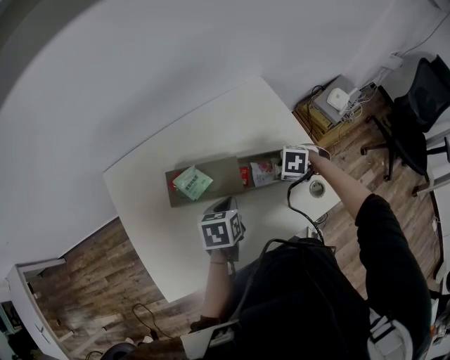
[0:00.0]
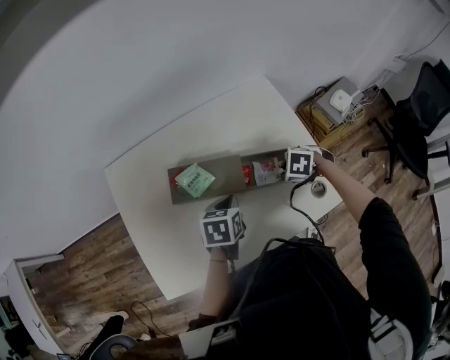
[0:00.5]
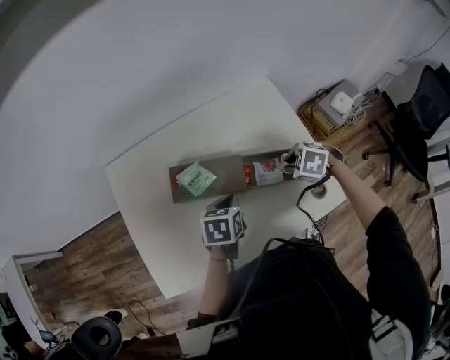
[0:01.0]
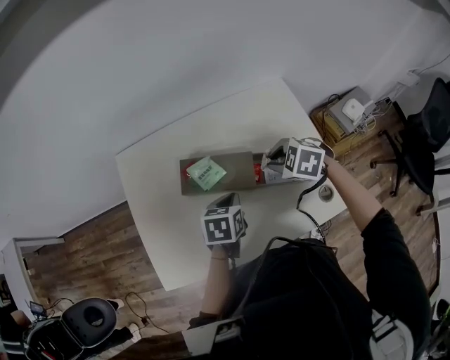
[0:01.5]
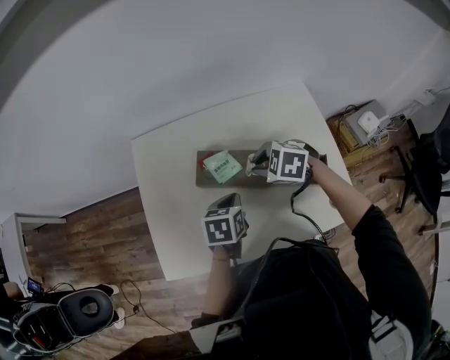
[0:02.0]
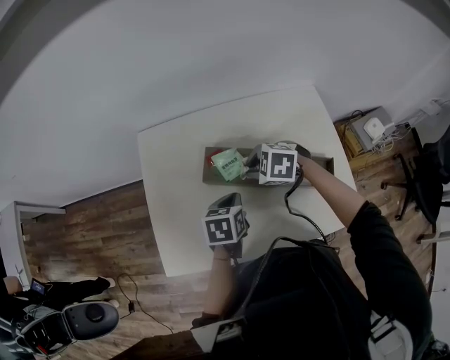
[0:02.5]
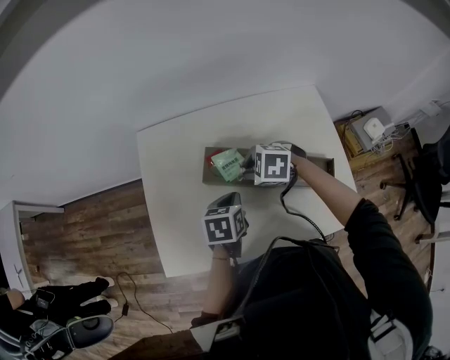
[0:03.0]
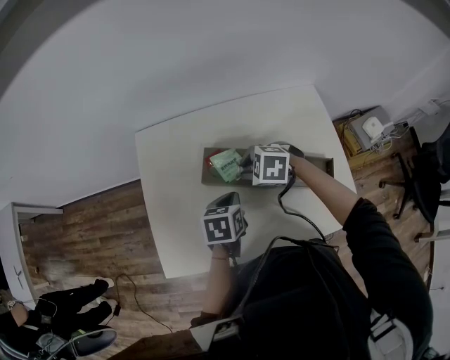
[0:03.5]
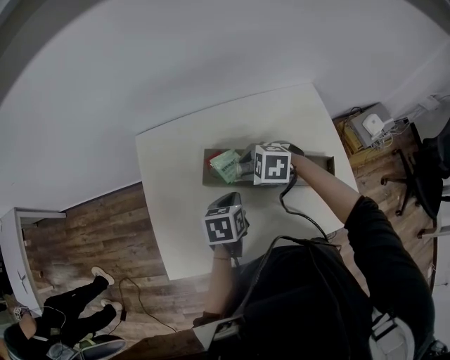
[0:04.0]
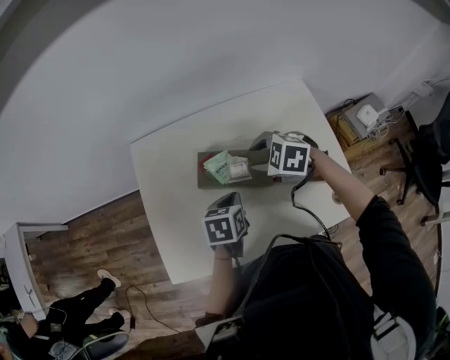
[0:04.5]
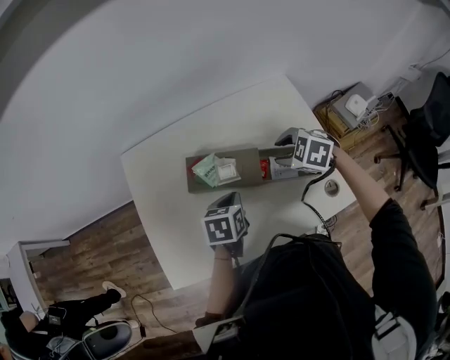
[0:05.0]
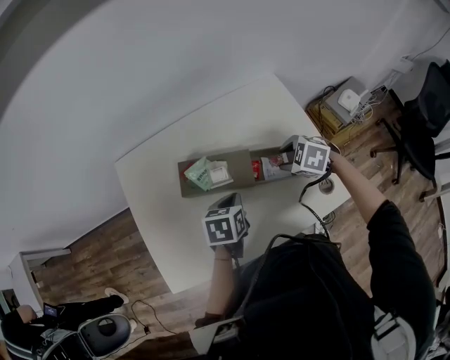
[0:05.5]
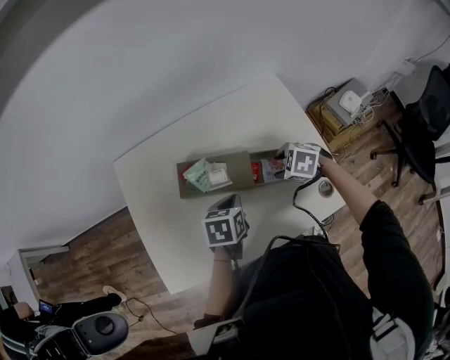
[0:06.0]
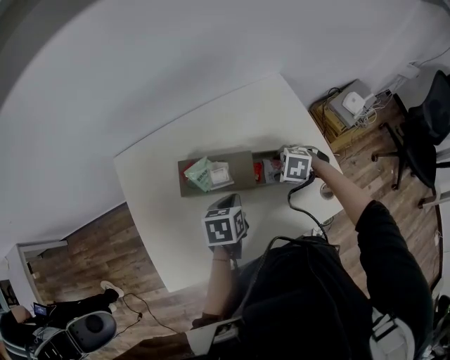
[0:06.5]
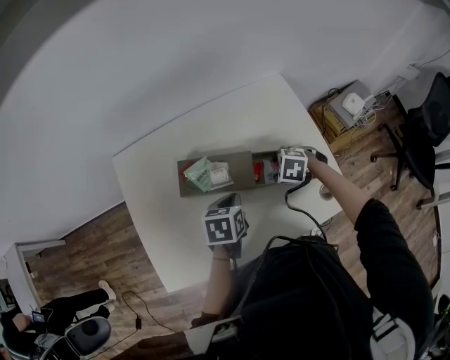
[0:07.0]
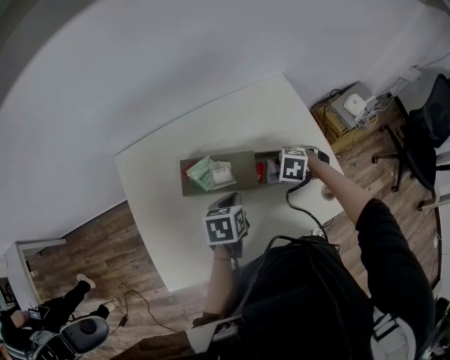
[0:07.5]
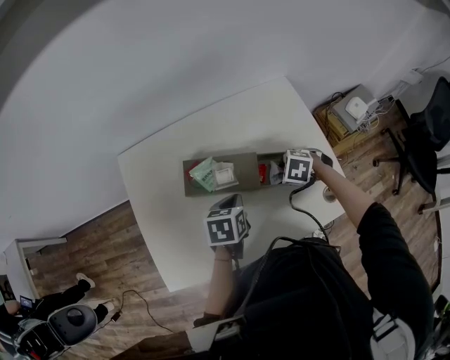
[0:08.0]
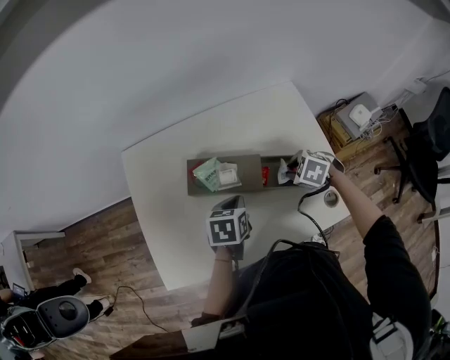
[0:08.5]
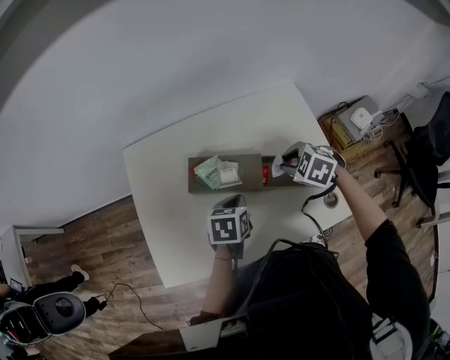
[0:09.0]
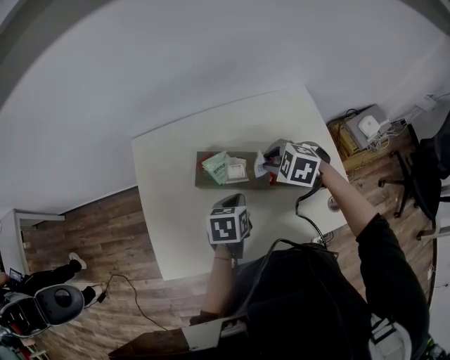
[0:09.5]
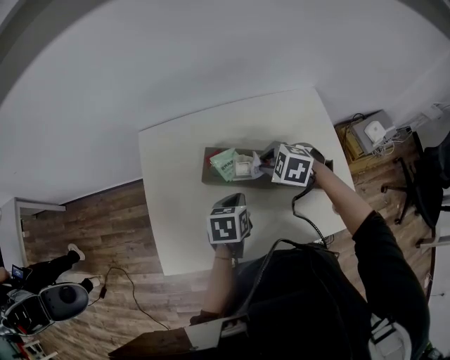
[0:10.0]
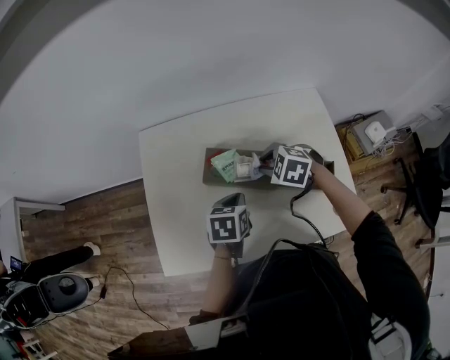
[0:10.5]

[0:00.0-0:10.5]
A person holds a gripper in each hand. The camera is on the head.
0:00.0 to 0:02.0: The right gripper shifts by some 20 cm, rotates approximately 30 degrees, and closes; the left gripper ends up roughly 10 cm from where it was.
0:02.0 to 0:04.0: The right gripper moves to the left, roughly 5 cm, and opens its fingers.
0:04.0 to 0:06.5: The right gripper moves some 20 cm, and turns by approximately 20 degrees; the left gripper changes place by about 5 cm.
0:06.5 to 0:08.5: The right gripper closes up.
0:08.5 to 0:10.5: The right gripper is displaced to the left and forward by approximately 15 cm, and changes its angle by roughly 20 degrees.

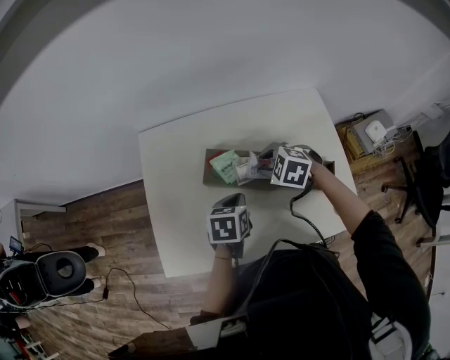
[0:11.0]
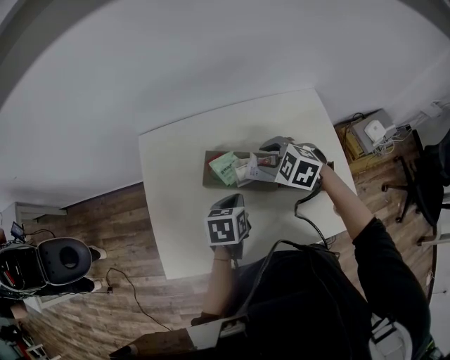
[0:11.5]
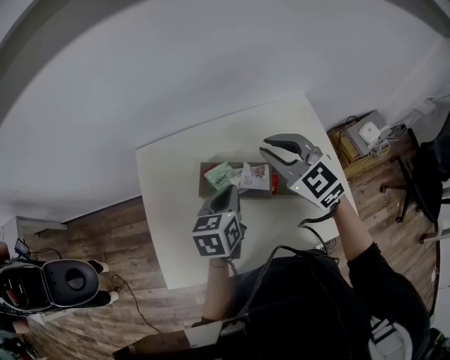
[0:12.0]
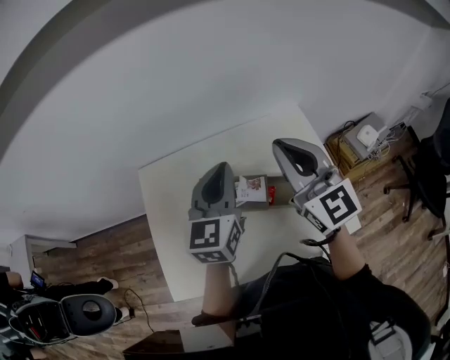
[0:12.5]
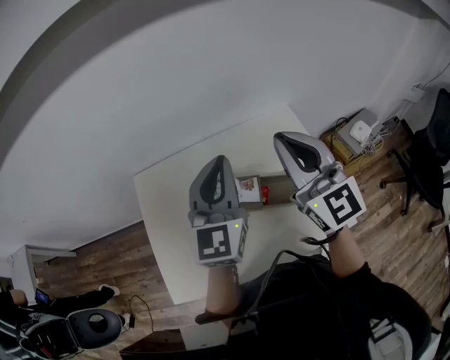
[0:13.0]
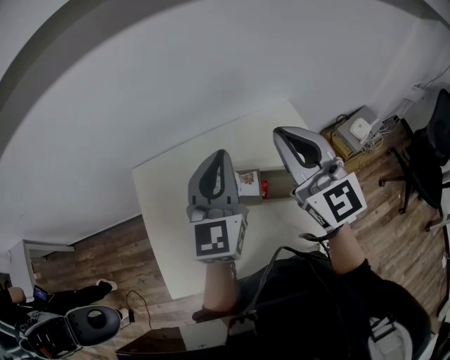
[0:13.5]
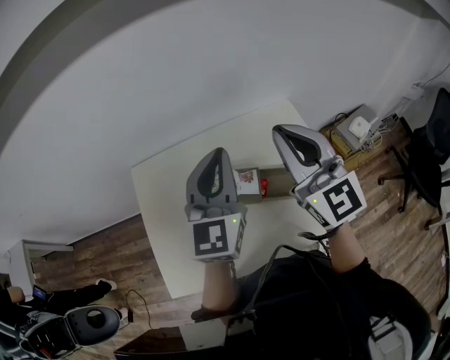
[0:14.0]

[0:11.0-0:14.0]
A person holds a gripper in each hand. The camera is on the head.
0:11.0 to 0:12.5: The two grippers go some 25 cm upward. The right gripper points its fingers roughly 70 degrees further upward, and closes, while the left gripper tips its fingers upward by about 50 degrees.
0:12.5 to 0:14.0: The left gripper travels upward by some 5 cm.

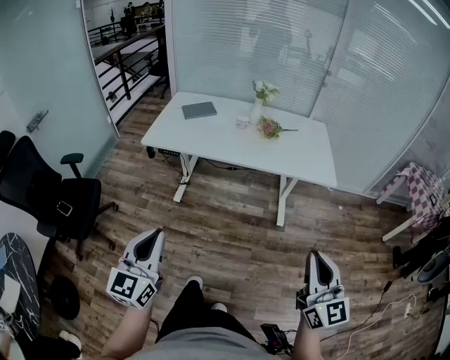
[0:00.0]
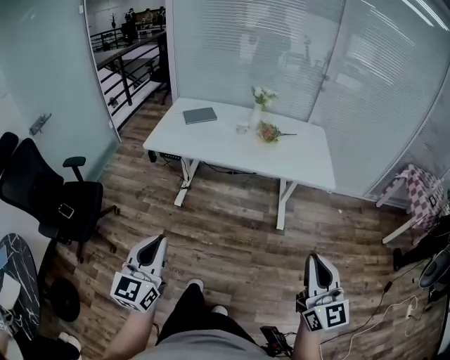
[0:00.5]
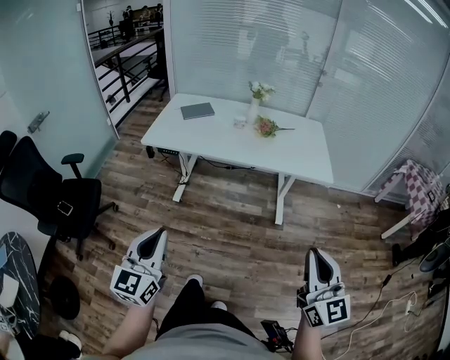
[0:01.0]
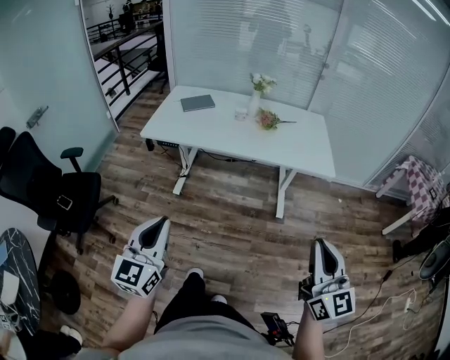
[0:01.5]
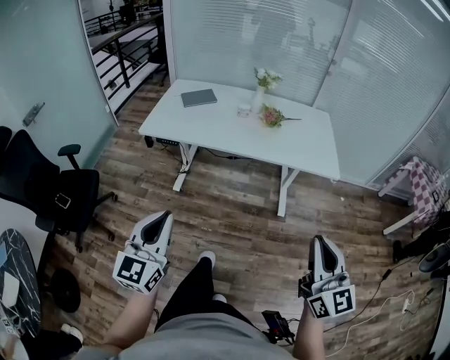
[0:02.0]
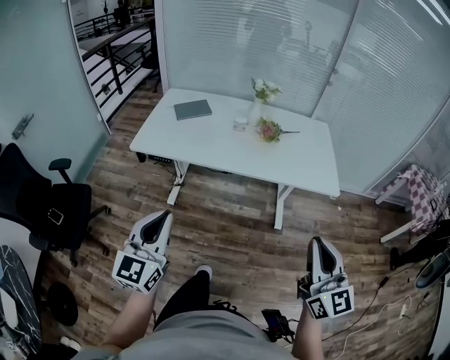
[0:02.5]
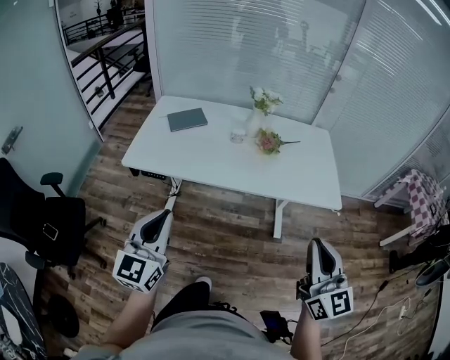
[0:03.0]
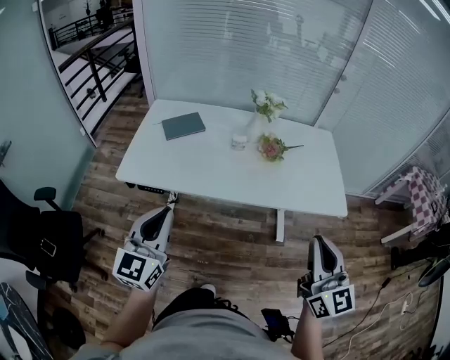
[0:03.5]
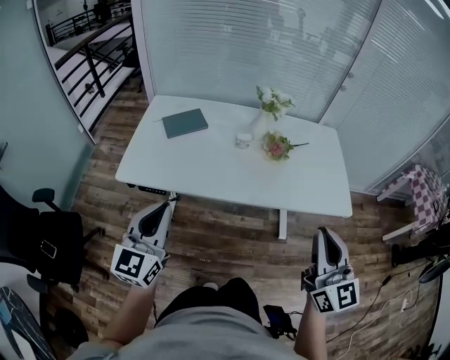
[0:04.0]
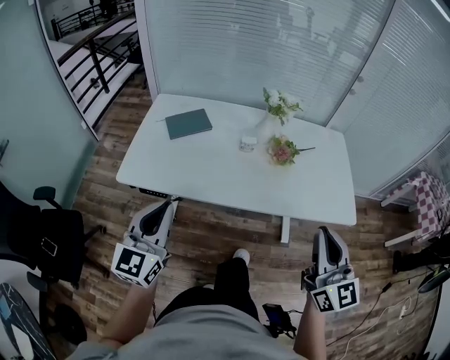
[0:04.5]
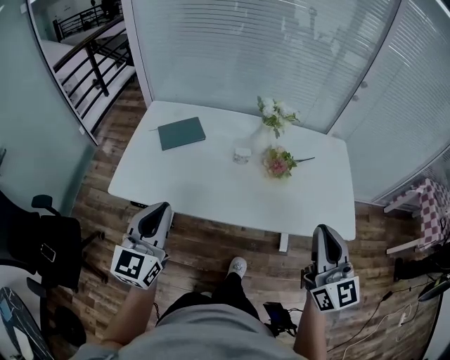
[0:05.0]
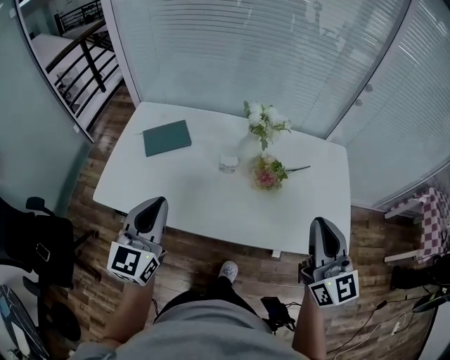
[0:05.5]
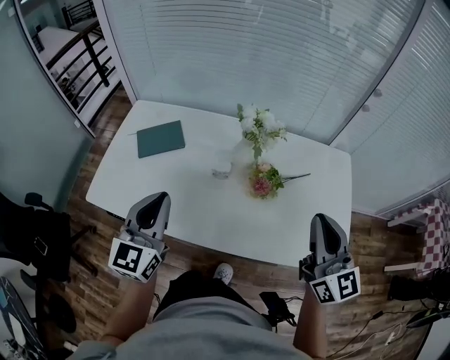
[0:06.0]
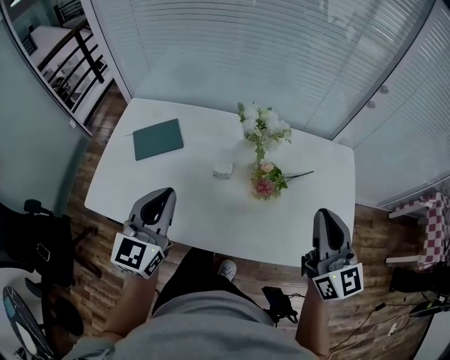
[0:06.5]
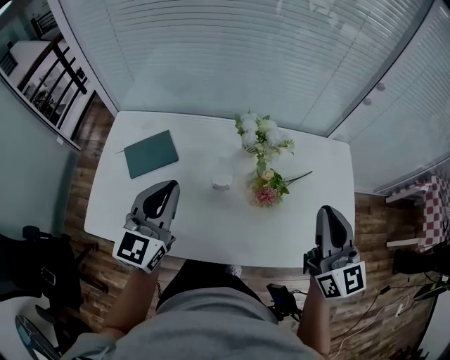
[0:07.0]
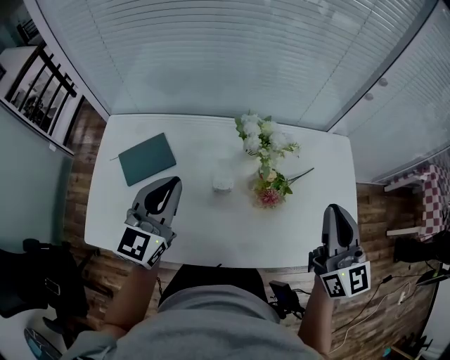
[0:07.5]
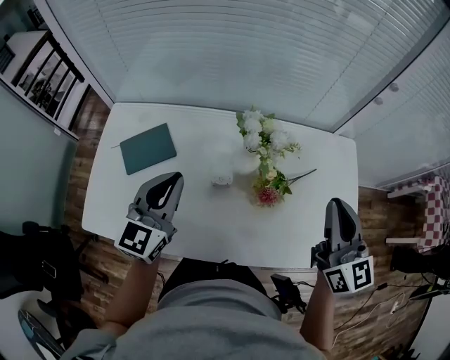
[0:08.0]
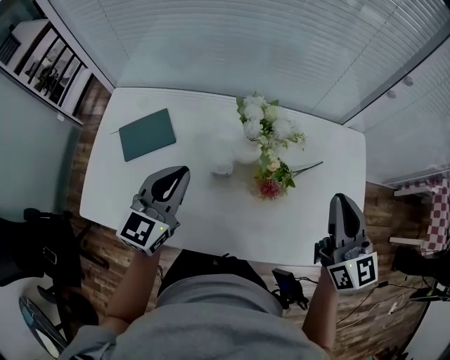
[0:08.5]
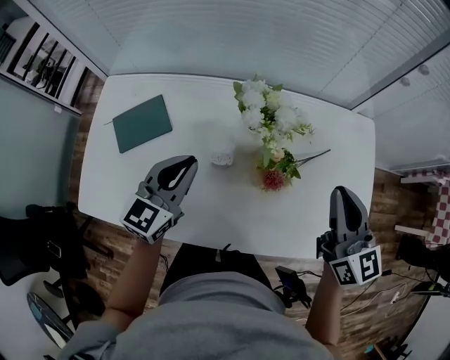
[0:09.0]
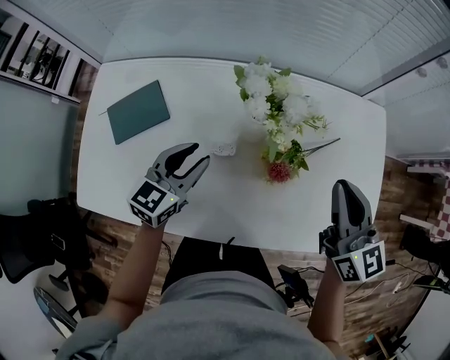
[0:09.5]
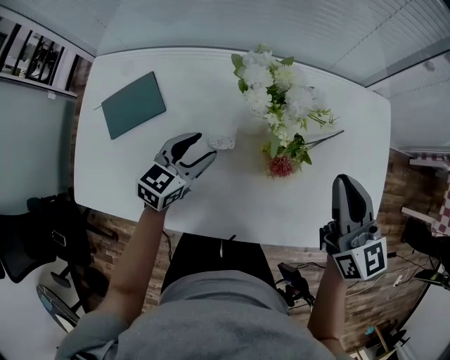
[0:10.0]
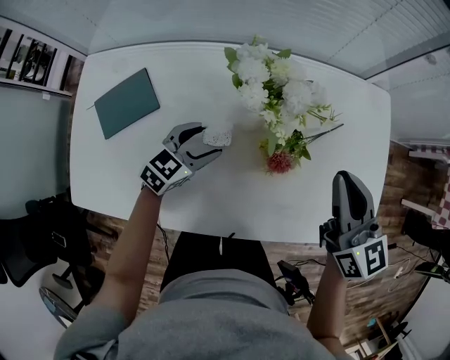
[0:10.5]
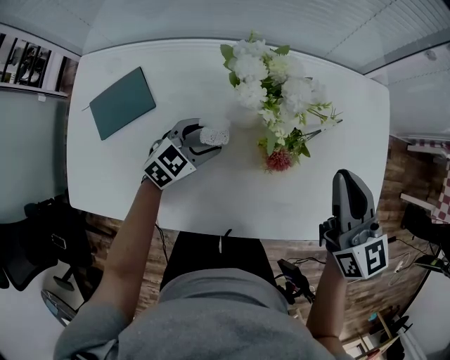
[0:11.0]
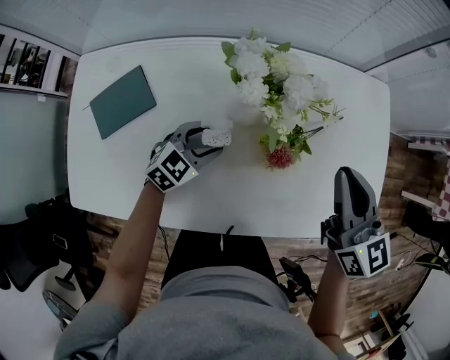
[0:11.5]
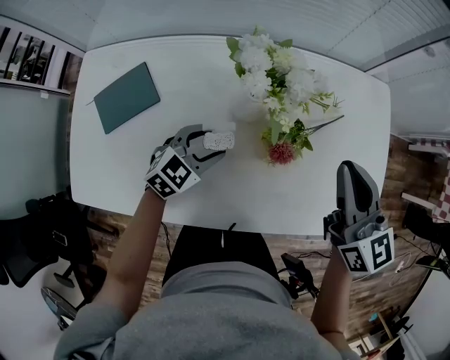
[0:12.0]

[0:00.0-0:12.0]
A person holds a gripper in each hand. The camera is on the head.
0:00.0 to 0:02.0: The grippers stay close to where they were, moving slightly.
0:02.0 to 0:04.0: The two grippers go roughly 30 cm forward.
0:04.0 to 0:06.0: Both grippers travel together forward and to the right, roughly 30 cm.
0:06.0 to 0:08.0: The grippers both shift forward by approximately 15 cm.
0:08.0 to 0:10.0: The right gripper travels downward by some 10 cm. Meanwhile the left gripper heads downward, covering about 20 cm, turns by roughly 30 degrees, and opens.
0:10.0 to 0:12.0: The left gripper ends up about 5 cm from where it was, and rotates about 30 degrees.

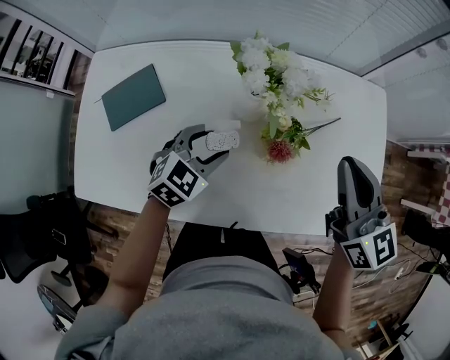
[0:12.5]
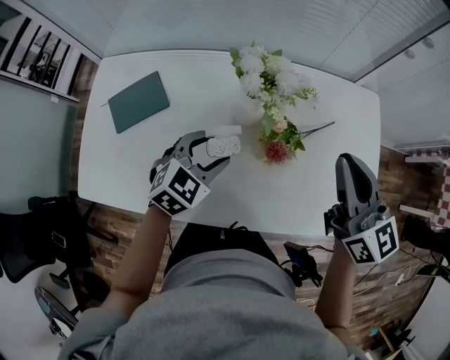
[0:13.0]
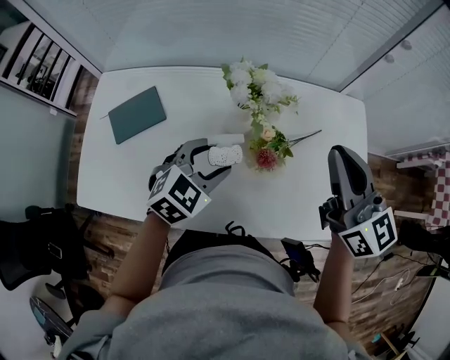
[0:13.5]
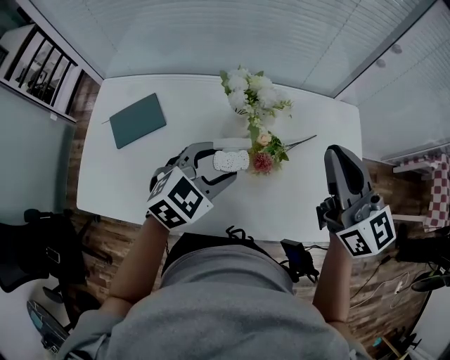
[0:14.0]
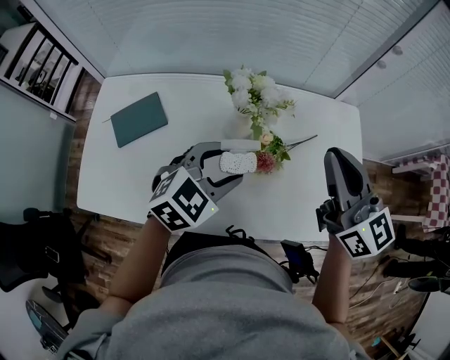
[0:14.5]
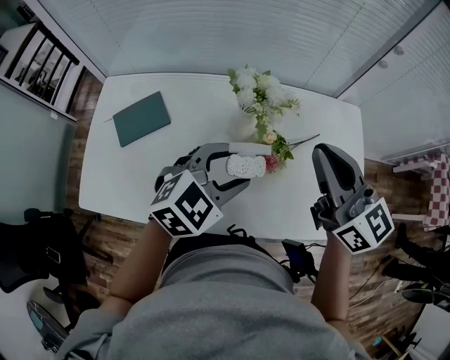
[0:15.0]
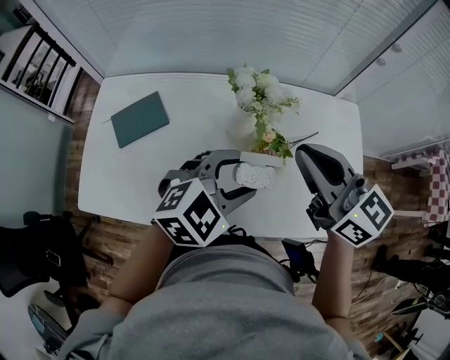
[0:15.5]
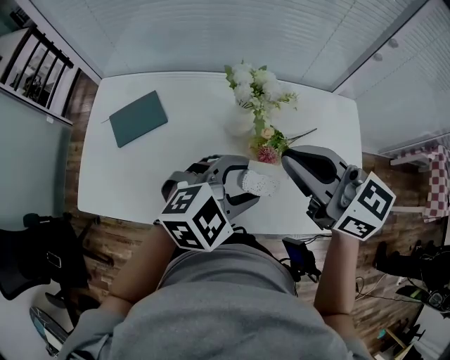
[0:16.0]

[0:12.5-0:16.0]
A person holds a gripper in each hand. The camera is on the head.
0:12.5 to 0:14.5: The left gripper is displaced upward and to the right by about 15 cm. Meanwhile the right gripper moves upward, about 10 cm.
0:14.5 to 0:16.0: The left gripper changes place by roughly 5 cm; the right gripper is displaced to the left by about 10 cm, and rotates about 30 degrees.
